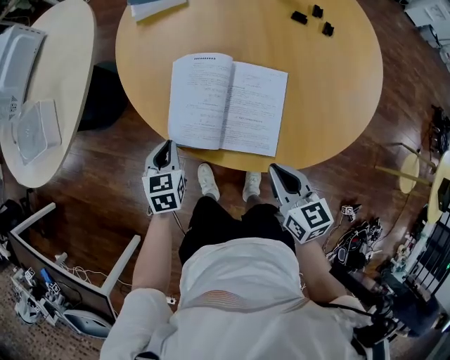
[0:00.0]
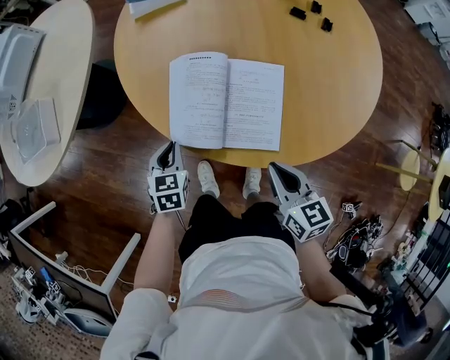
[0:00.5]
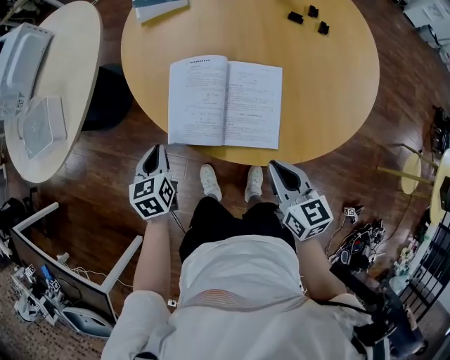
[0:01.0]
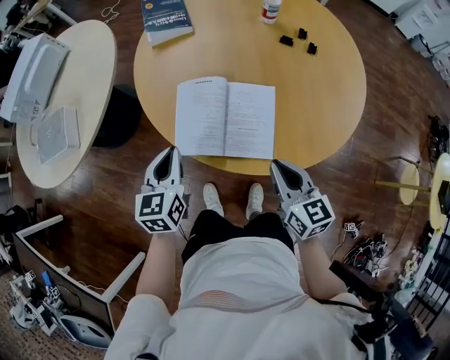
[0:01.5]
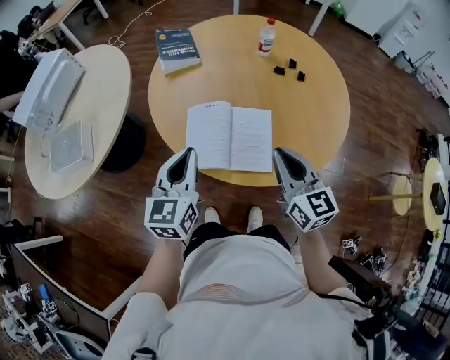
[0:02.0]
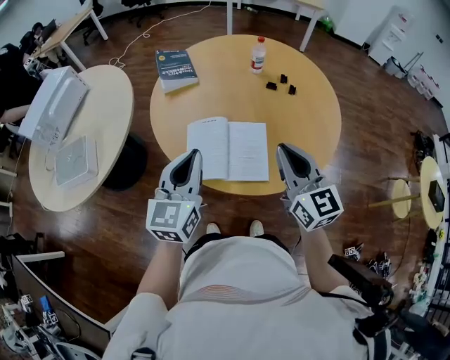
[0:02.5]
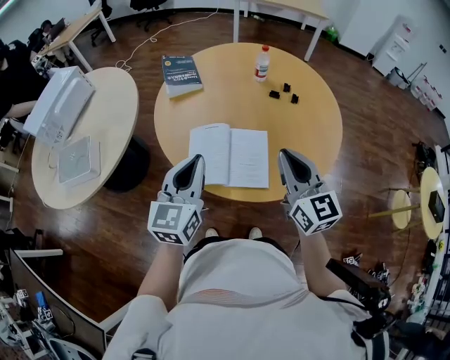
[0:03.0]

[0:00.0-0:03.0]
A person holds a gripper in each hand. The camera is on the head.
0:00.0 to 0:01.5: The right gripper travels upward by approximately 10 cm. The left gripper goes roughly 15 cm upward, and changes its angle by approximately 20 degrees.
0:01.5 to 0:03.0: The two grippers go approximately 20 cm upward. The left gripper turns by roughly 20 degrees; the right gripper turns by roughly 20 degrees.

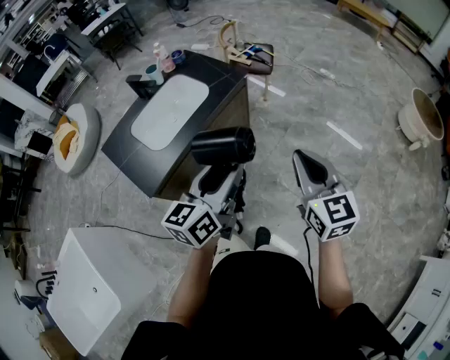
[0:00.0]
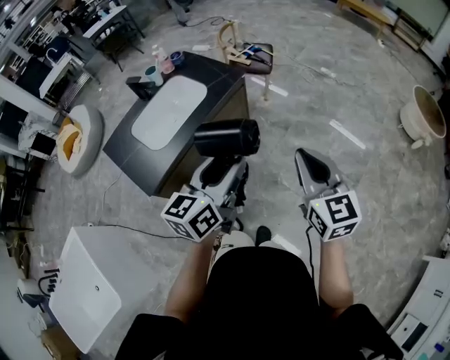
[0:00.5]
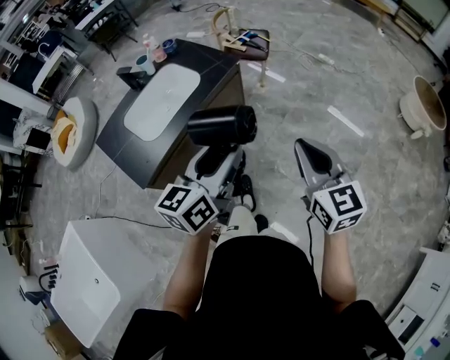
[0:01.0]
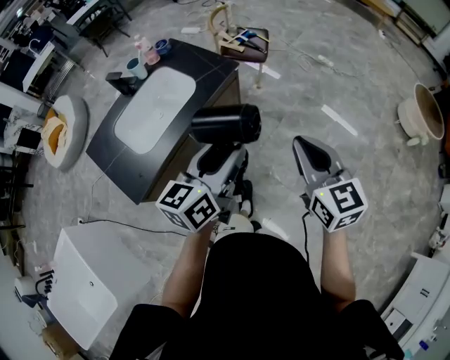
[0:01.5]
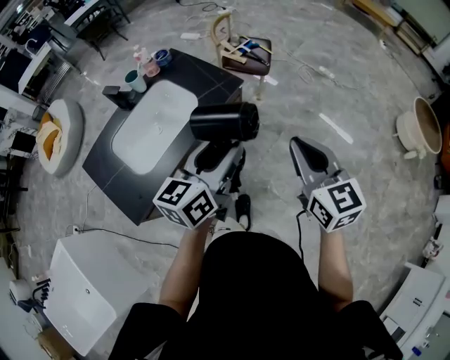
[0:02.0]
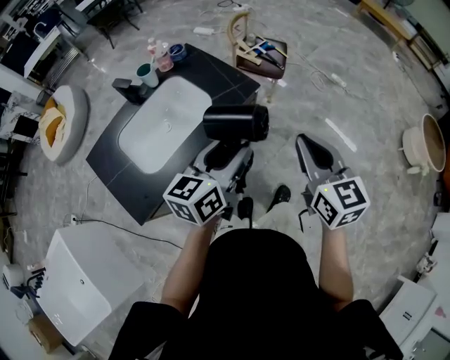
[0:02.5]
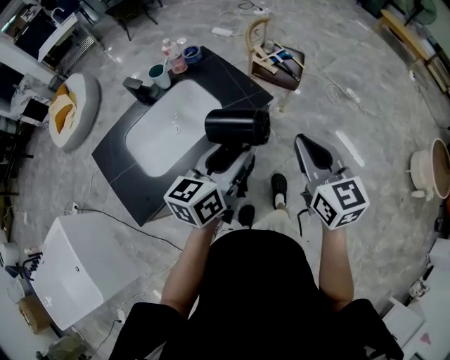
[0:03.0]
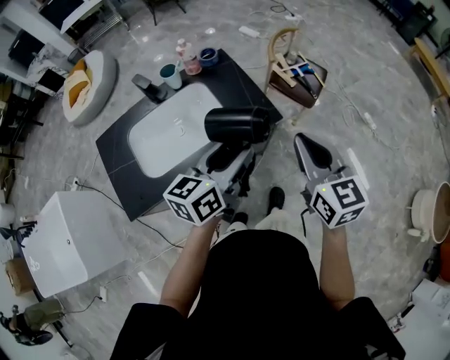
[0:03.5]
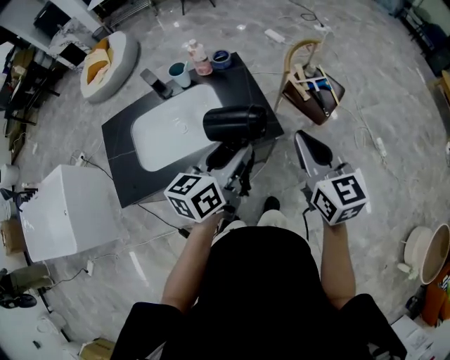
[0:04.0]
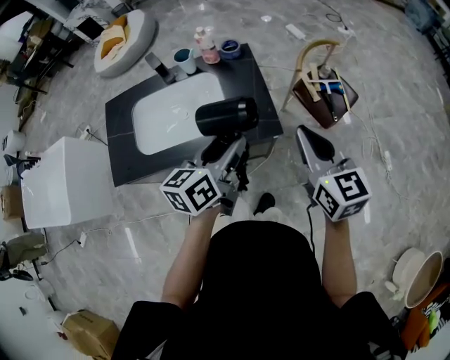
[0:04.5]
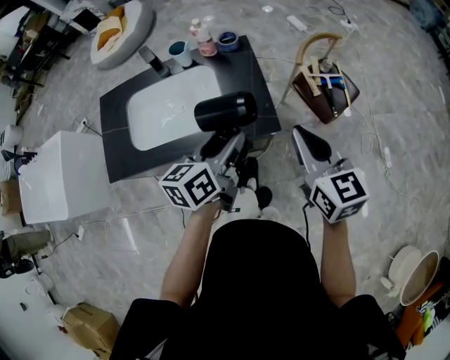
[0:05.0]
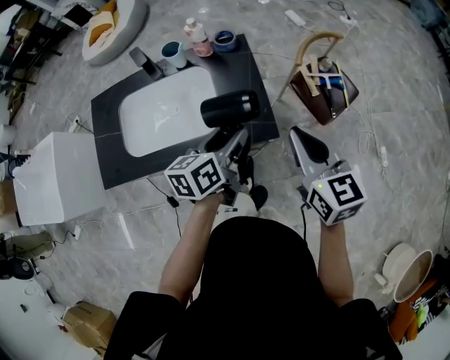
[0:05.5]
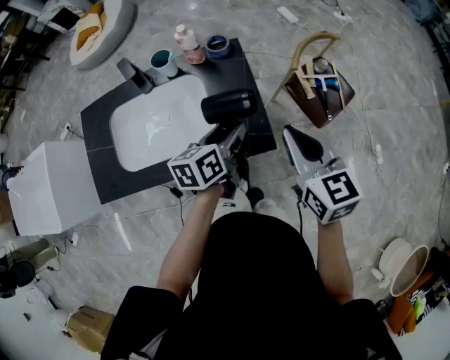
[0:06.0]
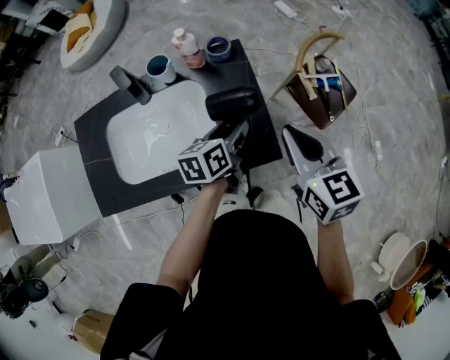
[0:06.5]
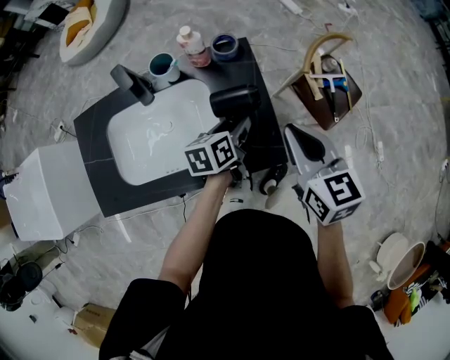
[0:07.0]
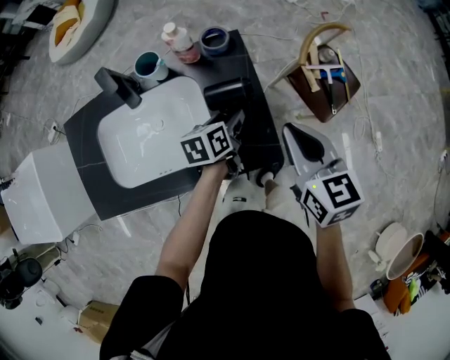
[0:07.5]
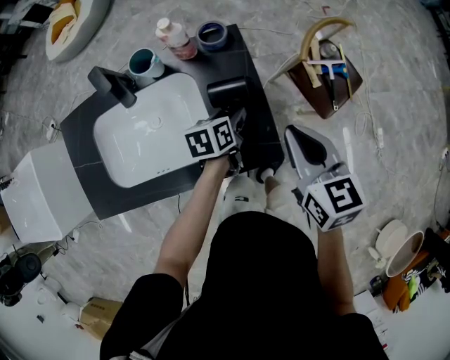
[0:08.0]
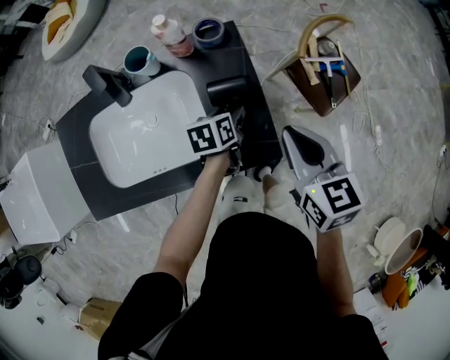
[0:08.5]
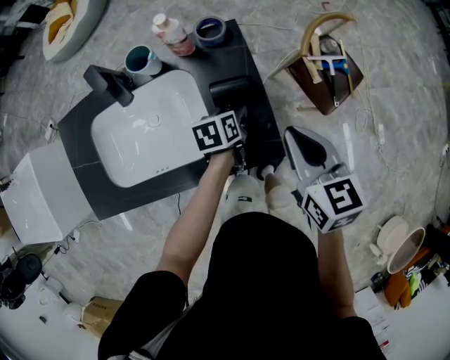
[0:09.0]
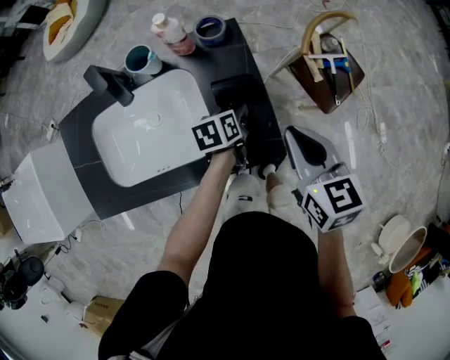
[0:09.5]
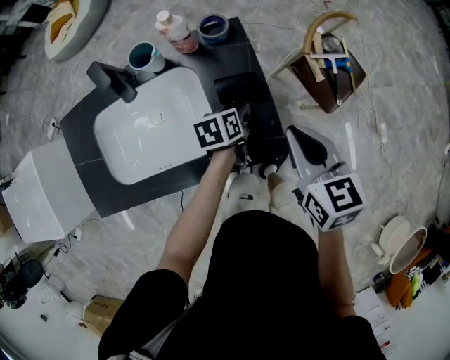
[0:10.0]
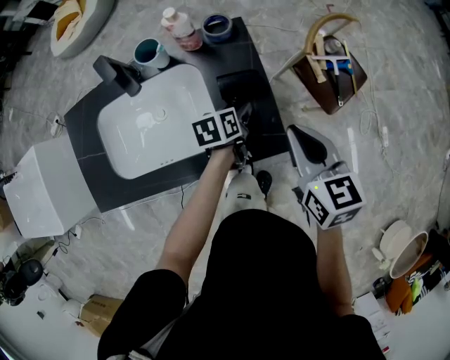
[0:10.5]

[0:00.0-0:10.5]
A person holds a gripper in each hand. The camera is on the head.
0:00.0 to 0:02.0: Both grippers move forward, roughly 20 cm.
0:02.0 to 0:04.0: The right gripper changes place by some 30 cm, and rotates about 30 degrees; the left gripper moves approximately 25 cm, and swivels some 30 degrees.
0:04.0 to 0:06.5: Both grippers move forward and downward, some 25 cm. The left gripper changes its angle by roughly 30 degrees.
0:06.5 to 0:08.5: The right gripper shifts roughly 5 cm downward; the left gripper is displaced downward by roughly 10 cm.
0:08.5 to 0:10.5: The grippers move only a little.

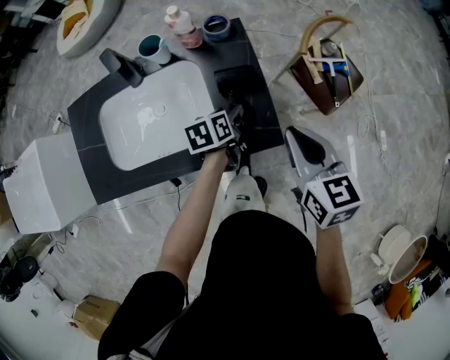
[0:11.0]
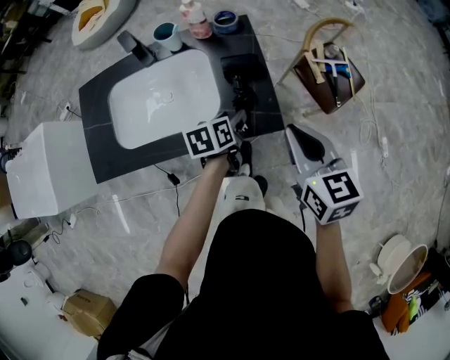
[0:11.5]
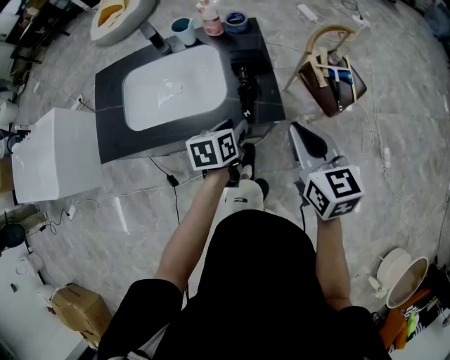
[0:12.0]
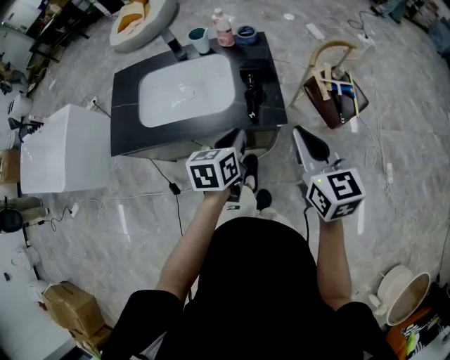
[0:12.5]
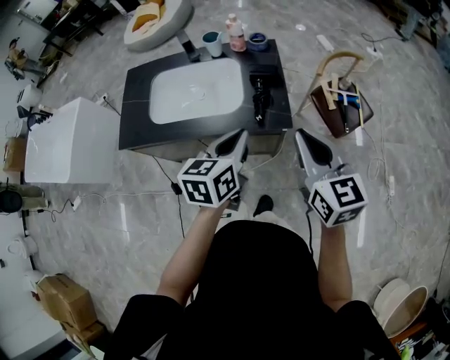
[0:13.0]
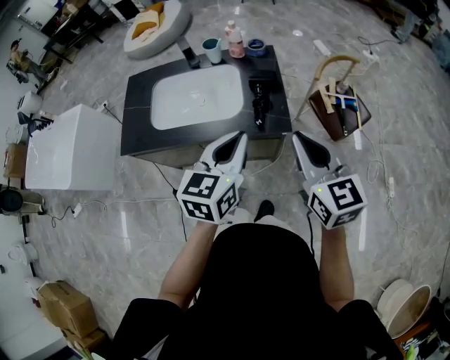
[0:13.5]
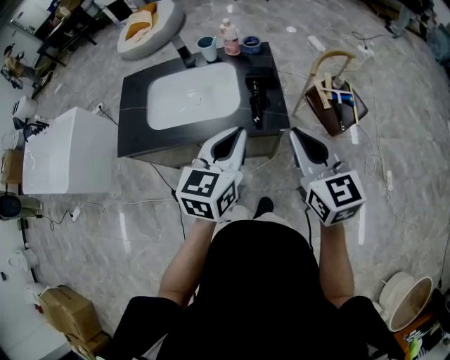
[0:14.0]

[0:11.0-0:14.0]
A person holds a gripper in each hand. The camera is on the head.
0:11.0 to 0:12.5: Both grippers travel together backward and upward, about 25 cm. The left gripper rotates some 20 degrees, and closes.
0:12.5 to 0:14.0: The right gripper changes place by roughly 5 cm, while the left gripper is displaced upward by about 15 cm, and turns by approximately 30 degrees.

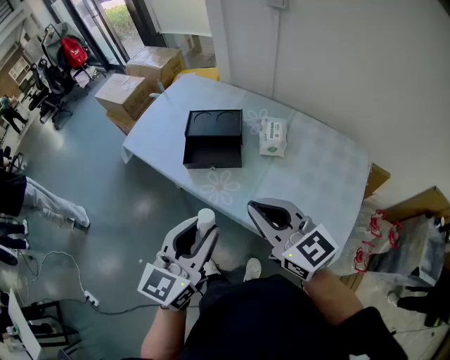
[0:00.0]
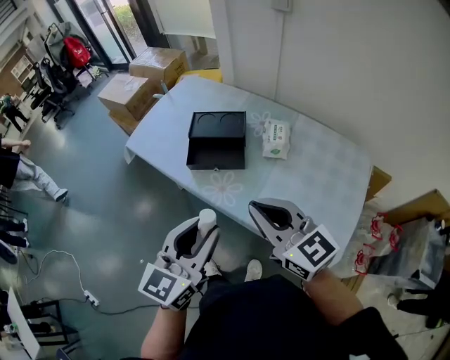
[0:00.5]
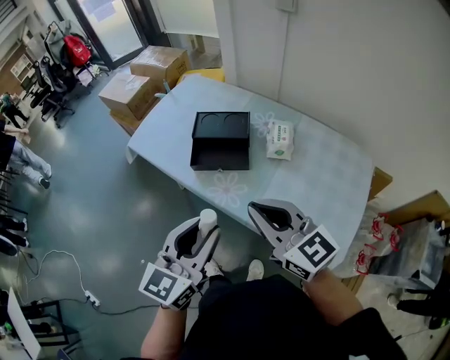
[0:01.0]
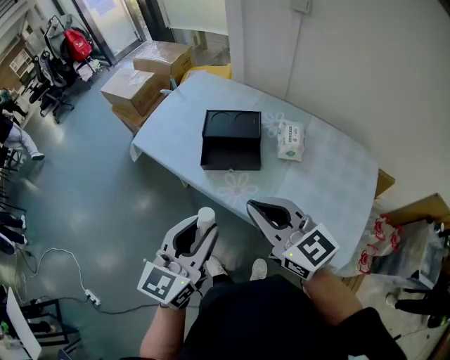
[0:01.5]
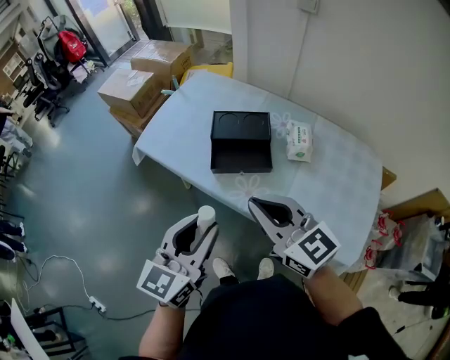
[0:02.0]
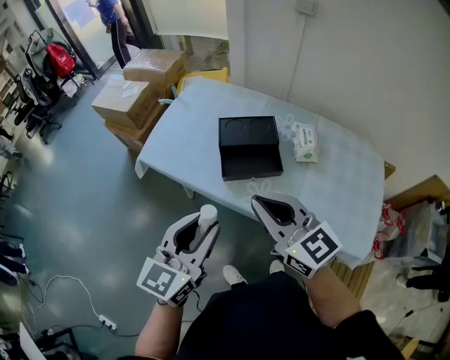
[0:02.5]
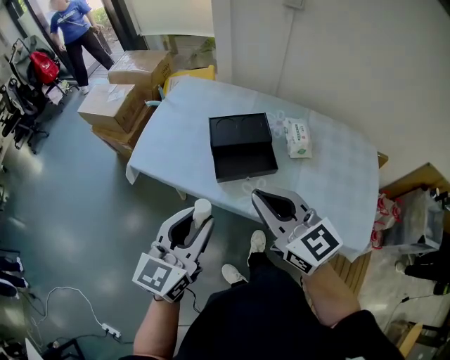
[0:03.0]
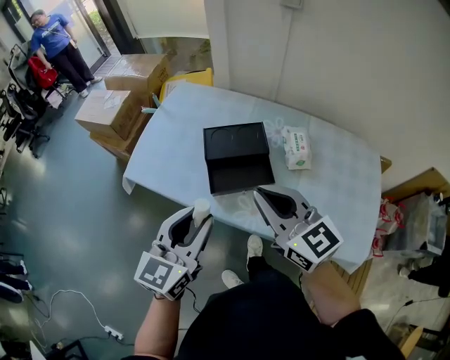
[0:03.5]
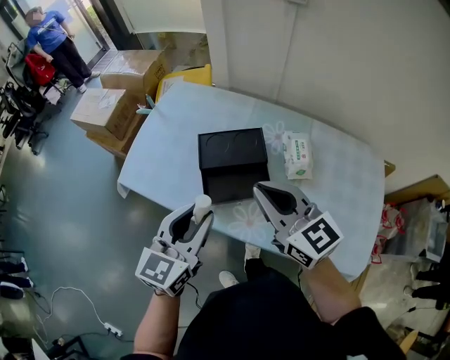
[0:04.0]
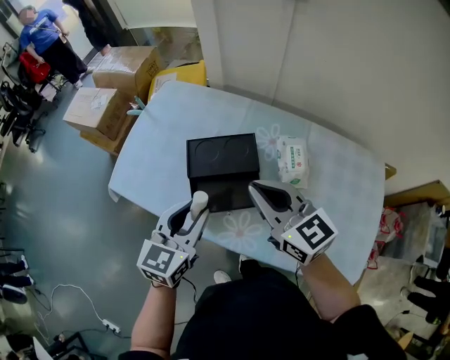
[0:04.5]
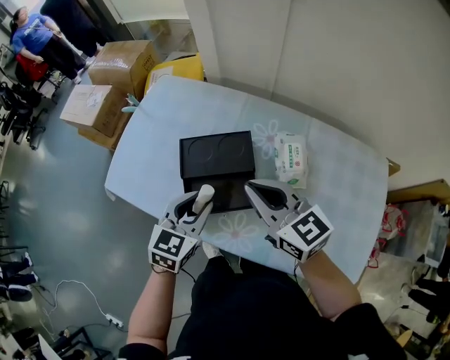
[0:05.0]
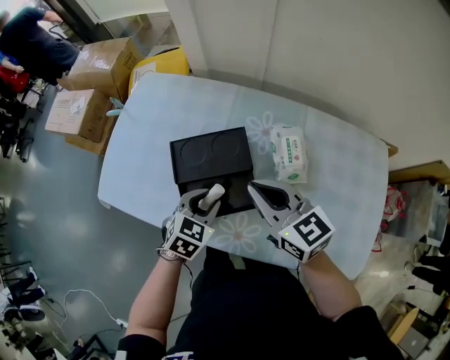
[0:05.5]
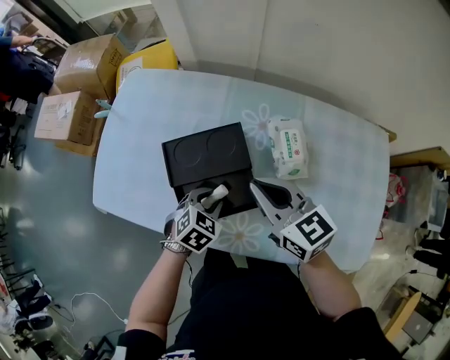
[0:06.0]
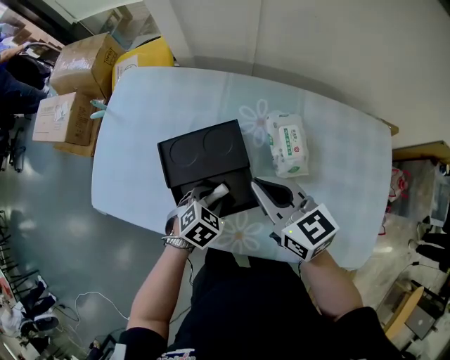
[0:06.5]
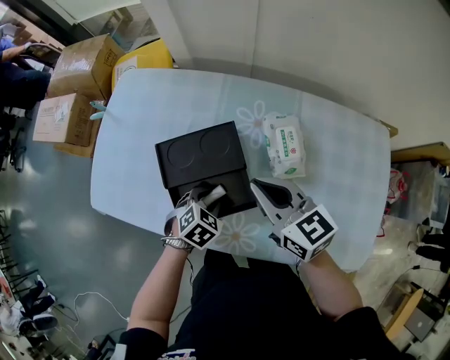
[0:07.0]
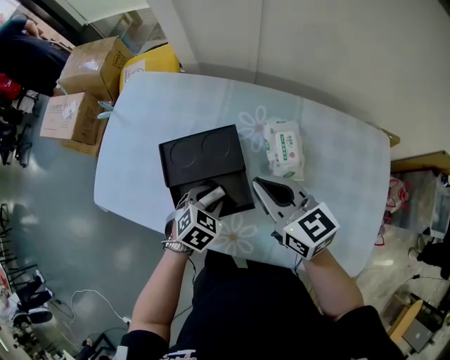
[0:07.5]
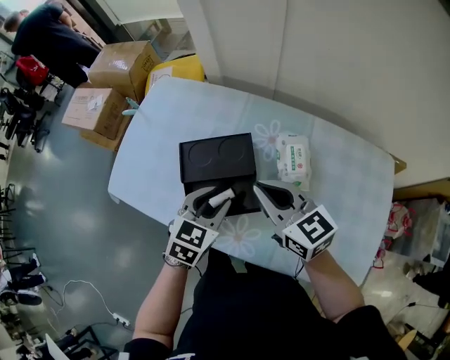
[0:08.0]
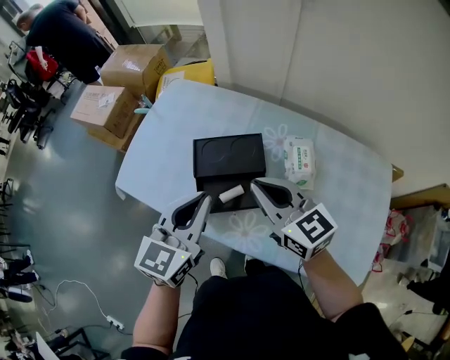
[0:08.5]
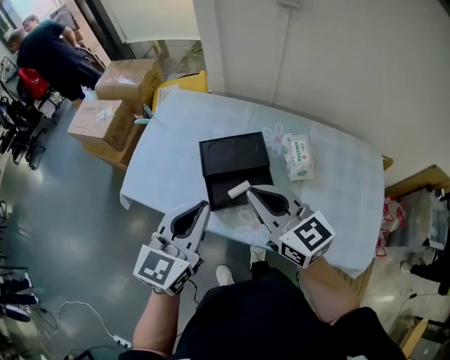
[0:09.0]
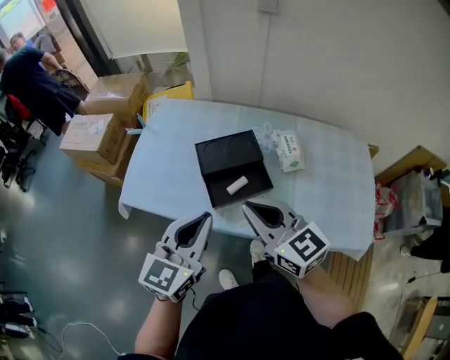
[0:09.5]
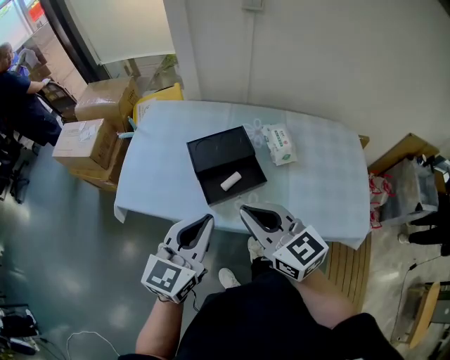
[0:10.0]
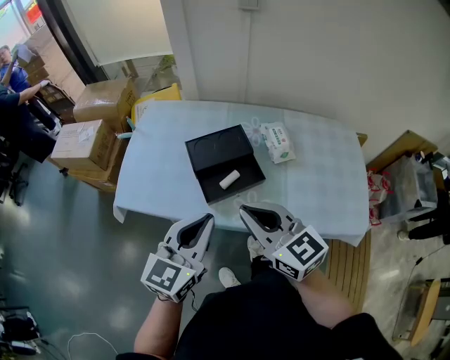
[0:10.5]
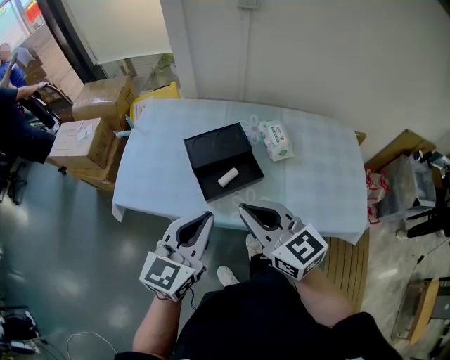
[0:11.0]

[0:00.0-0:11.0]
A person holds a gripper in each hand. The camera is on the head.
0:00.0 to 0:02.0: Both grippers travel together to the left and forward, approximately 15 cm.
0:02.0 to 0:03.5: The grippers both shift forward by some 10 cm.
0:03.5 to 0:05.5: The right gripper moves forward, downward and to the right, roughly 20 cm. The left gripper travels downward, forward and to the right by about 30 cm, and angles its fingers downward, by roughly 40 degrees.
0:05.5 to 0:07.5: The right gripper moves some 5 cm. The left gripper travels downward by some 5 cm.
0:07.5 to 0:09.0: The left gripper shifts roughly 30 cm upward, tips its fingers upward by roughly 50 degrees, and closes its fingers, while the right gripper shifts some 20 cm to the left, upward and backward.
0:09.0 to 0:11.0: Both grippers move backward, some 10 cm.
